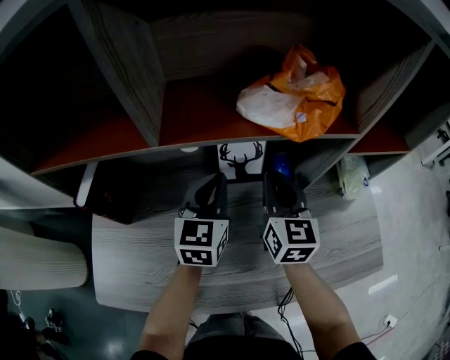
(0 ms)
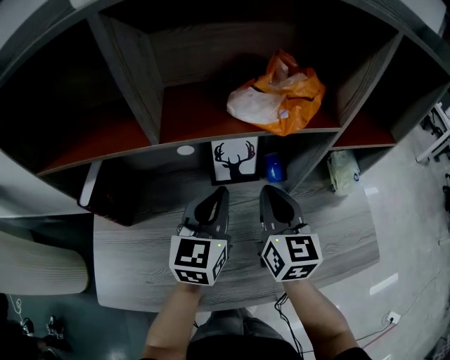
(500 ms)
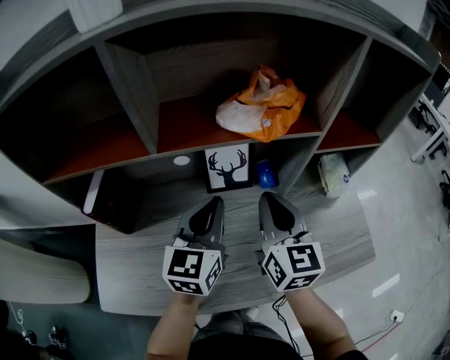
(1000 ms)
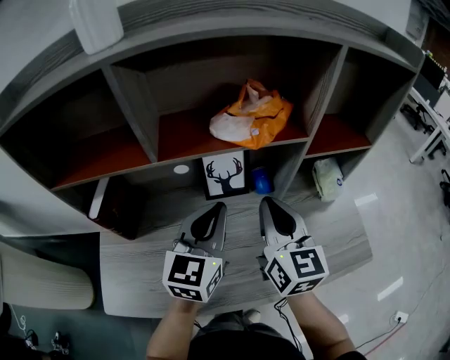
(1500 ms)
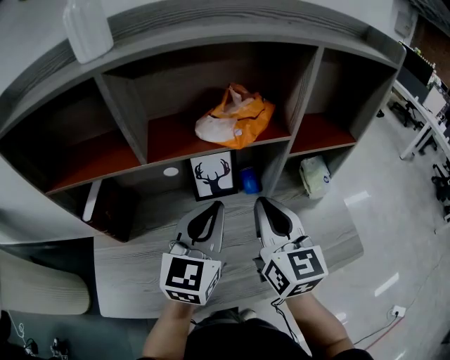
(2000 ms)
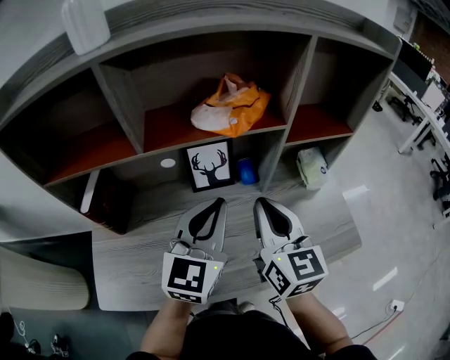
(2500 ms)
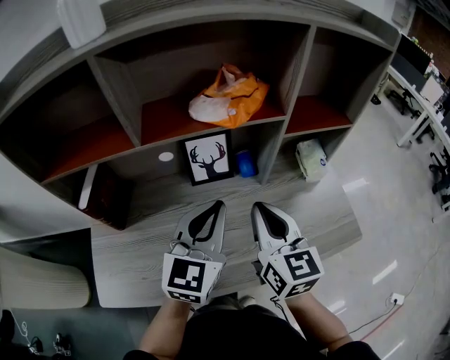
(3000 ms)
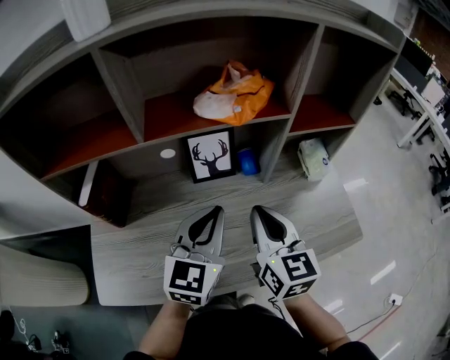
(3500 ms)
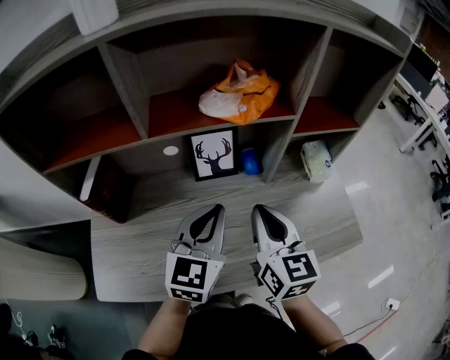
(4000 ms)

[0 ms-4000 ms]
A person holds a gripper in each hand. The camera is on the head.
0 ms to 2000 ms: The left gripper shifts approximately 20 cm upward, backward and to the right. Meanwhile the right gripper shifts roughly 15 cm upward and backward.
2000 ms to 4000 ms: The right gripper shifts roughly 5 cm downward; the left gripper ends up some 5 cm from where it was.

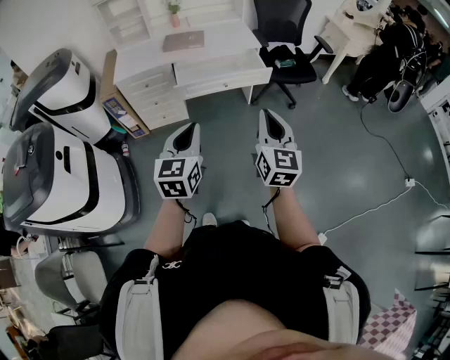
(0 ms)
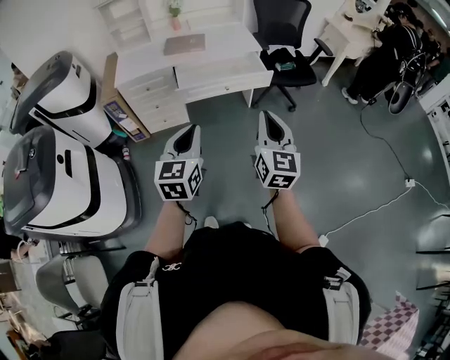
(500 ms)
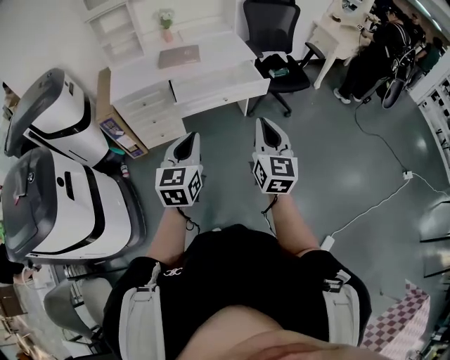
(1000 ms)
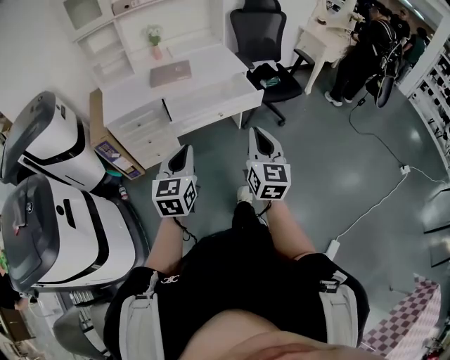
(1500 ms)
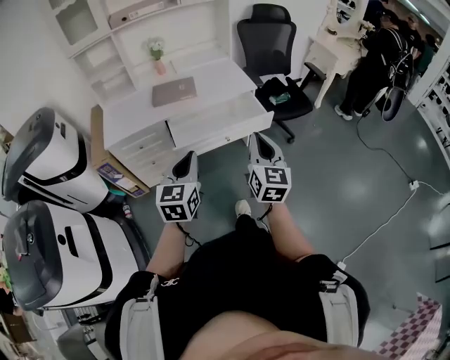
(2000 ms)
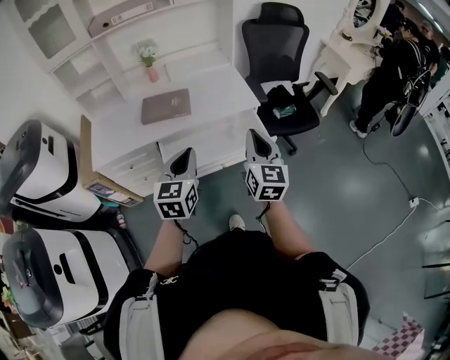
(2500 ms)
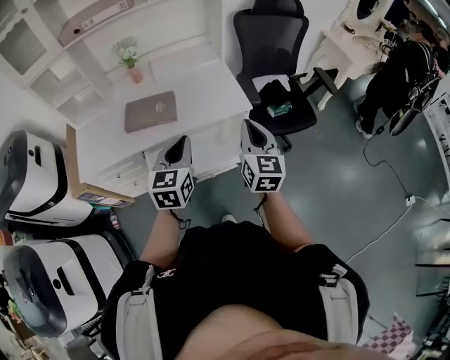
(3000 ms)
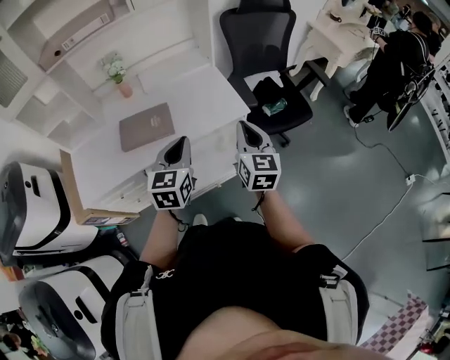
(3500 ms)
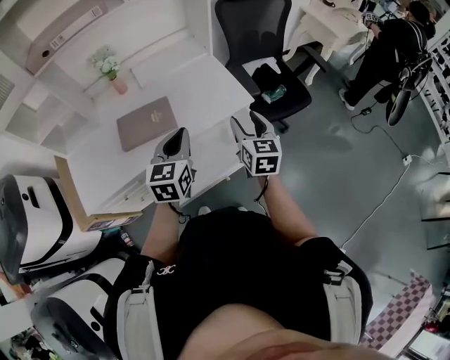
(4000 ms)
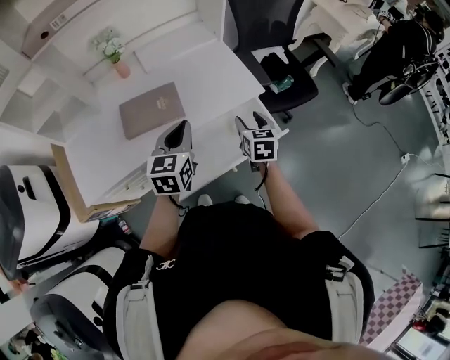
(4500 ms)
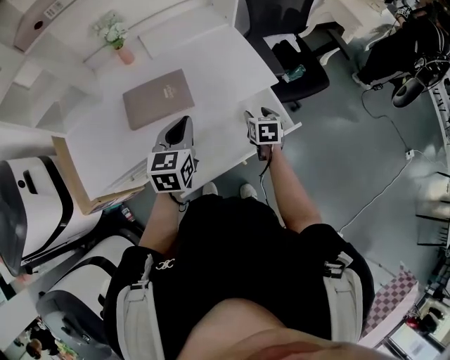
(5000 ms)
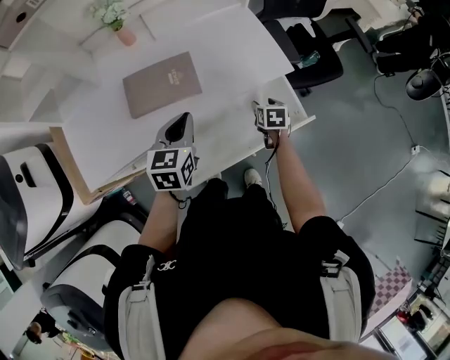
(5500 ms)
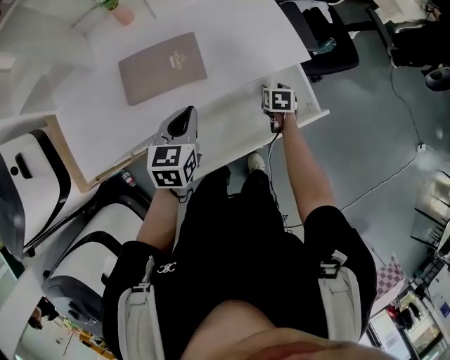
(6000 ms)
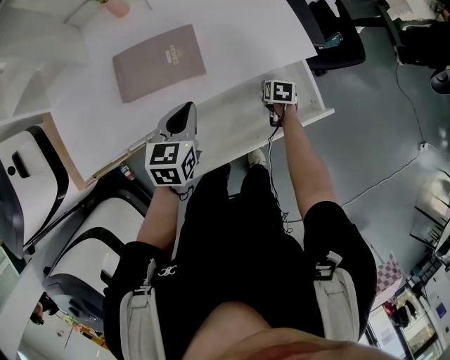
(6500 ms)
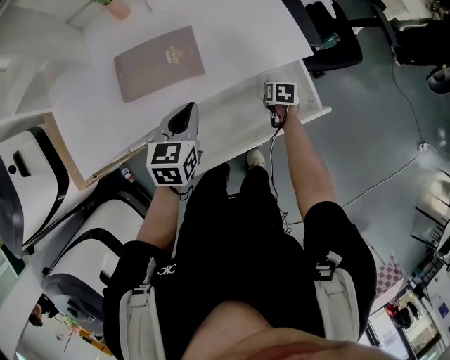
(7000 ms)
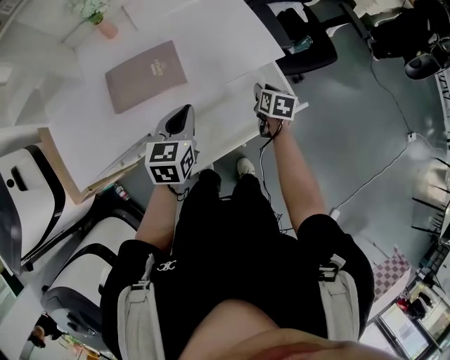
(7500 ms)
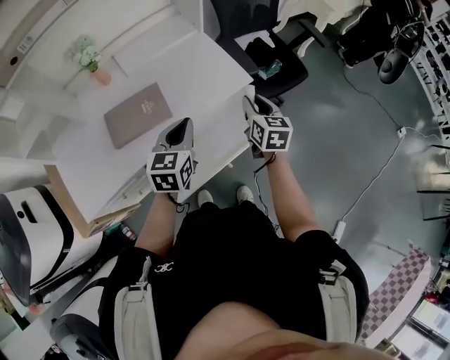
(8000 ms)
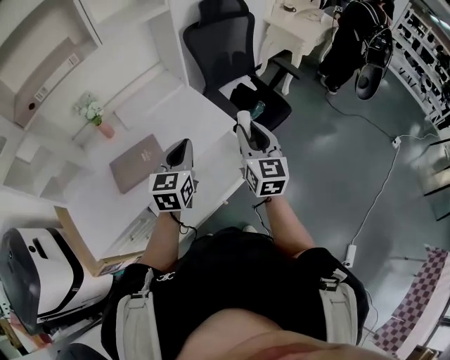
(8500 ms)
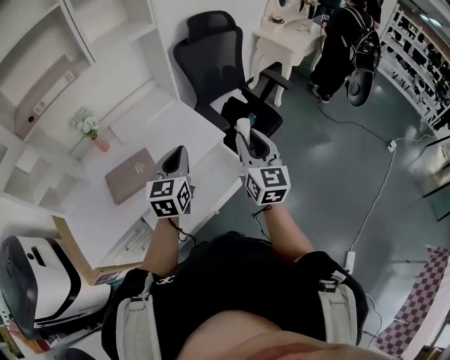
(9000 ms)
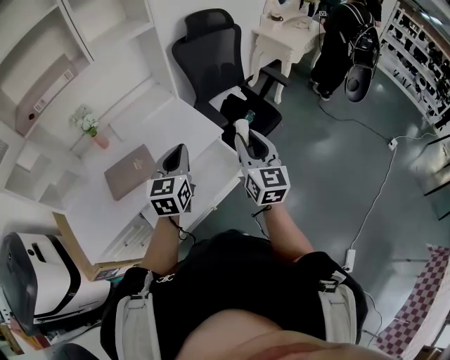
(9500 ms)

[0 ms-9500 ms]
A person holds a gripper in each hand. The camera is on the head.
0 ms to 2000 ms: The two grippers go some 20 cm forward.
2000 ms to 4000 ms: The pair of grippers is taken forward, about 40 cm. The right gripper opens its fingers.
4000 ms to 5500 ms: The right gripper goes about 25 cm downward, and tips its fingers downward by about 40 degrees. The left gripper goes about 15 cm downward and to the left.
5500 ms to 7500 ms: The right gripper moves approximately 10 cm downward and comes back, and closes, while the left gripper moves about 5 cm.
7500 ms to 9500 ms: The left gripper moves upward and to the right, roughly 25 cm, and swivels approximately 20 degrees; the right gripper heads upward, covering some 35 cm, and angles its fingers upward, by roughly 50 degrees.

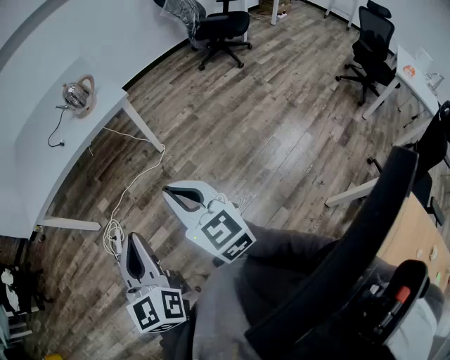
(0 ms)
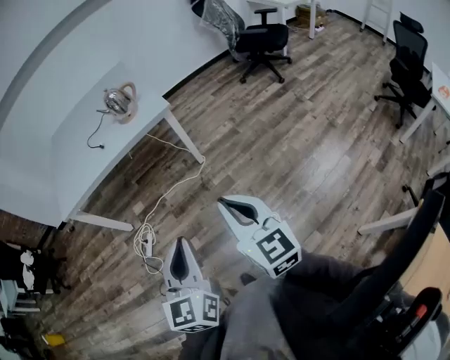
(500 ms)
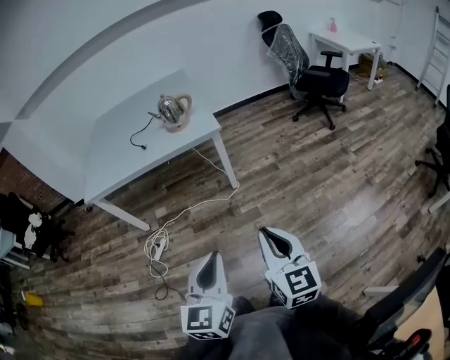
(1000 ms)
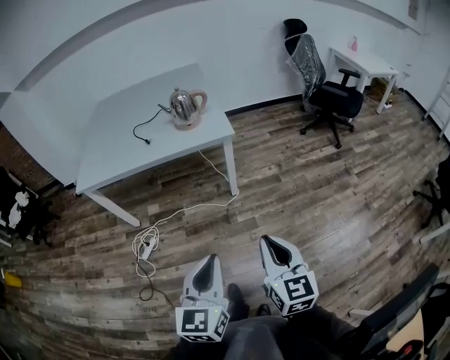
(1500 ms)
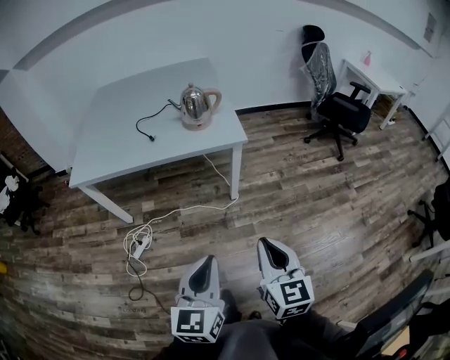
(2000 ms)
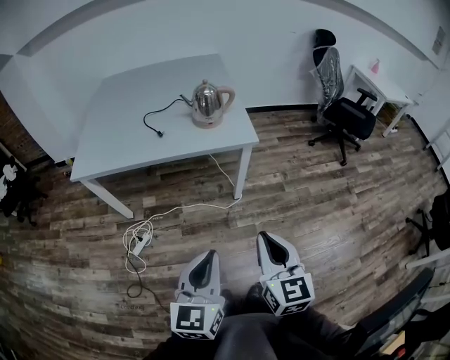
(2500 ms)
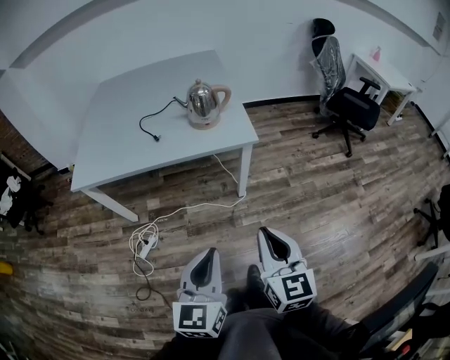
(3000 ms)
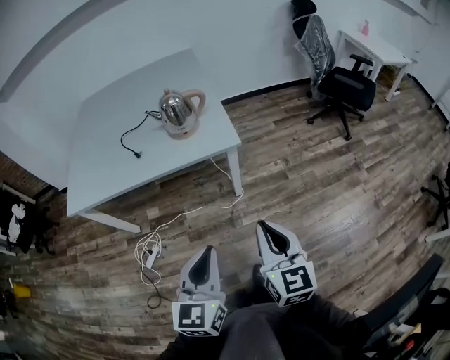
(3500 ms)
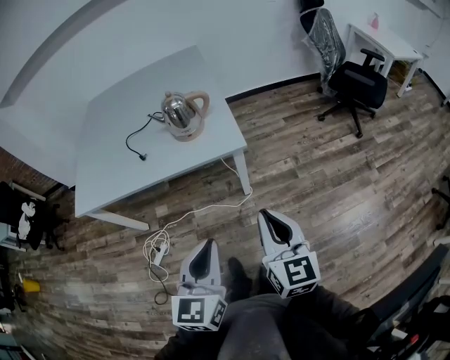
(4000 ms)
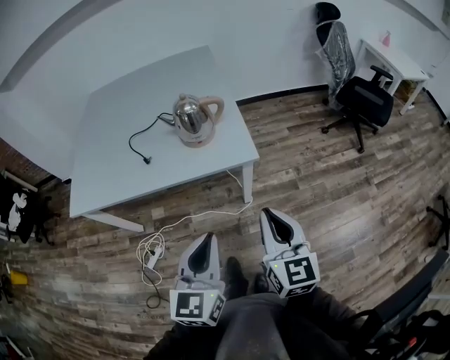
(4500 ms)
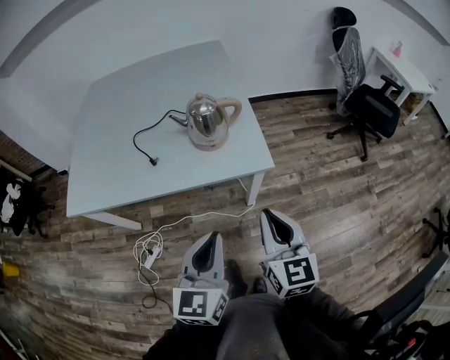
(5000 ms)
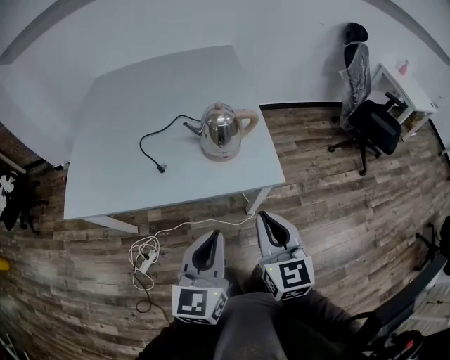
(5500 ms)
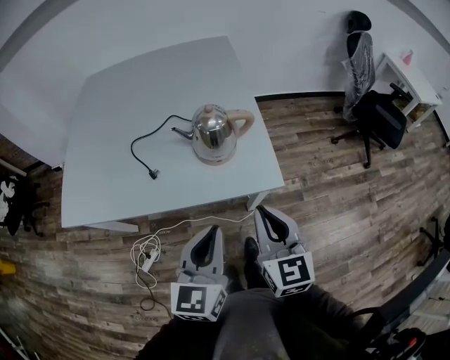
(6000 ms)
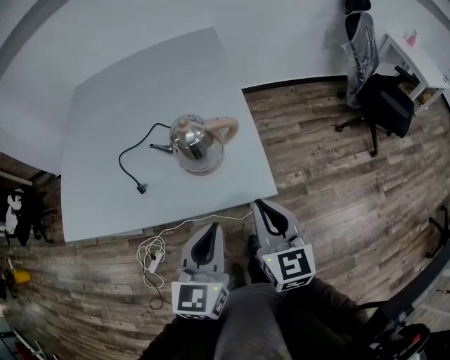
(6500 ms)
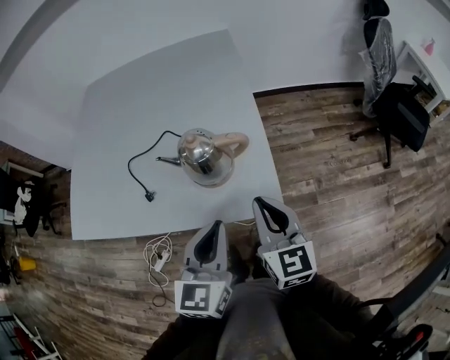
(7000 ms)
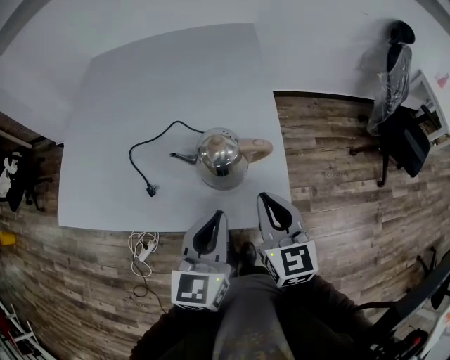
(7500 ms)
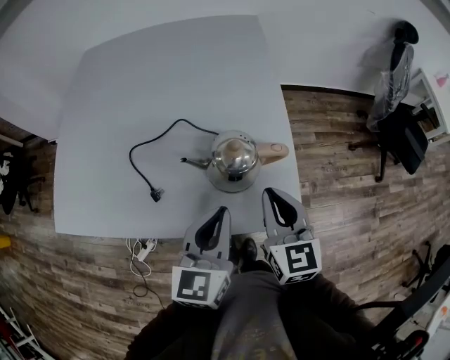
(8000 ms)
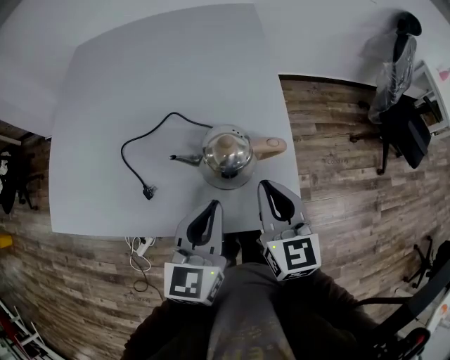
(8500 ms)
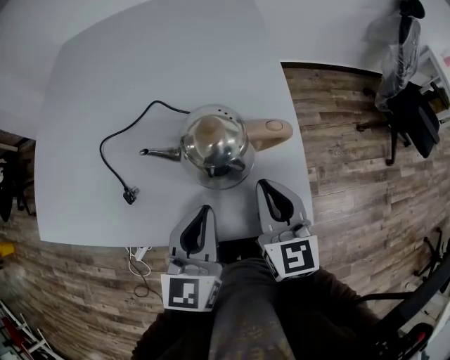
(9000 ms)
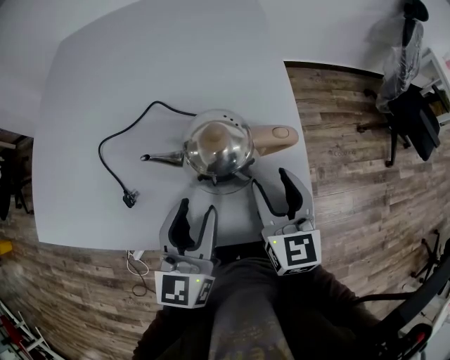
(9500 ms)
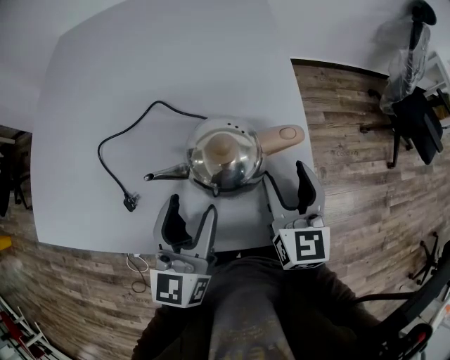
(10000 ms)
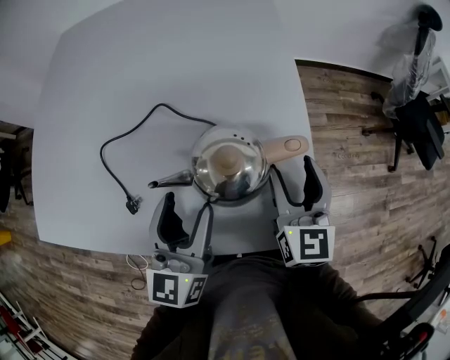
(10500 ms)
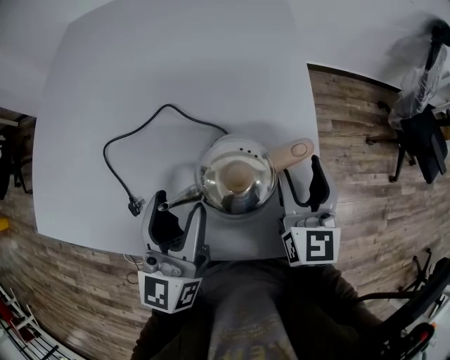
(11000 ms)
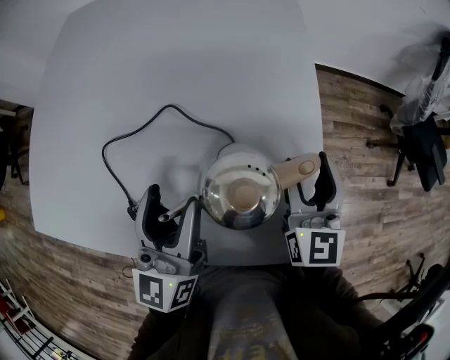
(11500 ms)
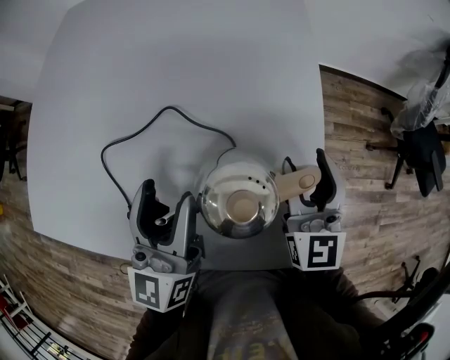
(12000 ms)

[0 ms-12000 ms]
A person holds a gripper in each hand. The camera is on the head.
0 ms to 2000 ms: The two grippers go roughly 20 cm forward.
2000 ms to 4000 ms: The two grippers go approximately 20 cm forward.
4000 ms to 6000 ms: Both grippers move forward and to the left, approximately 25 cm.
6000 ms to 8000 ms: The grippers both shift forward by some 20 cm.
8000 ms to 10000 ms: The right gripper heads downward and forward, covering approximately 15 cm, and opens its fingers, while the left gripper goes about 10 cm downward, and opens up.
10000 ms to 12000 ms: The left gripper moves forward, upward and to the left, some 10 cm; the right gripper travels forward and upward by approximately 10 cm.

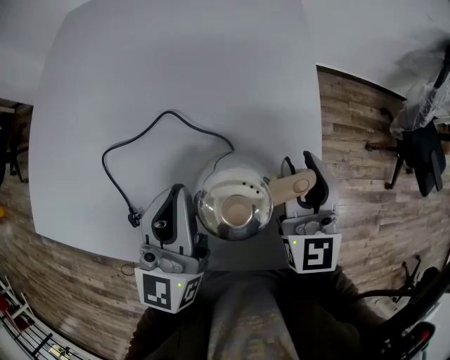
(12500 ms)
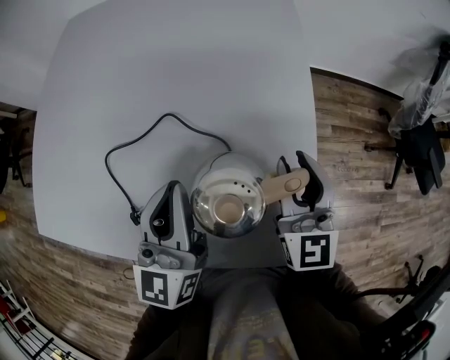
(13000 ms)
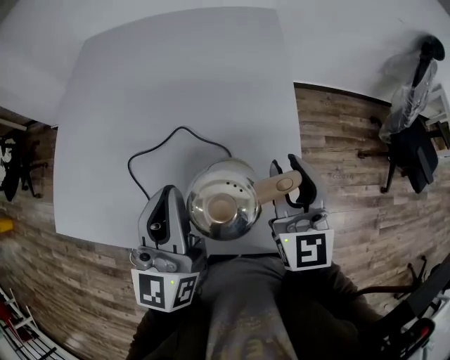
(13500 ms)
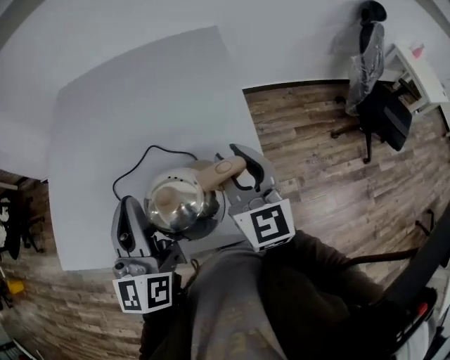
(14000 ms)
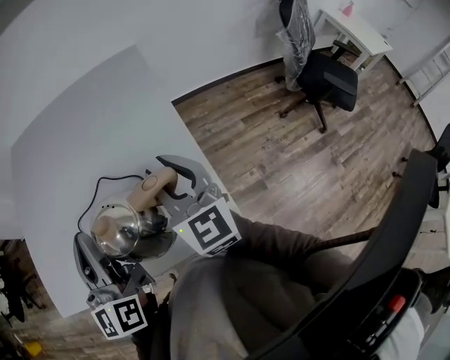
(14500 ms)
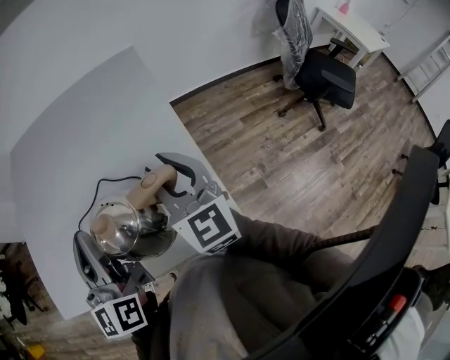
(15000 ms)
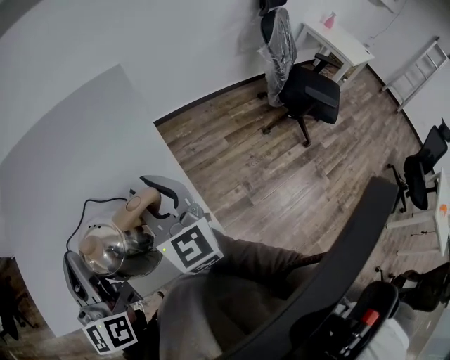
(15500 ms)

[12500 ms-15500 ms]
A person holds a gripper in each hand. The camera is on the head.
12500 ms to 14000 ms: Both grippers move upward, some 15 cm.
14000 ms to 15500 ms: Neither gripper changes place.
